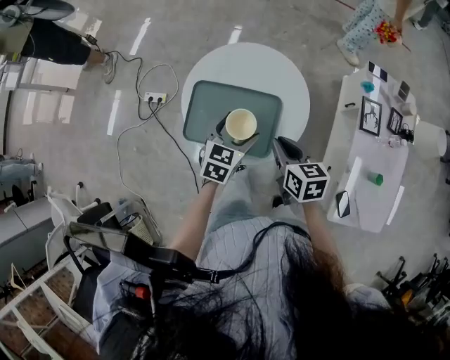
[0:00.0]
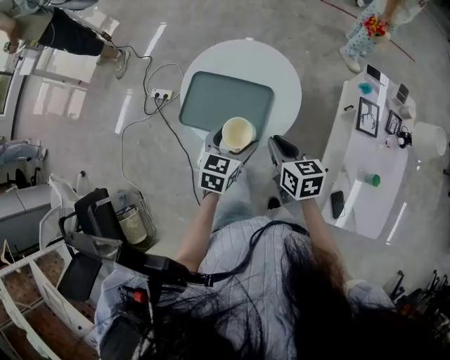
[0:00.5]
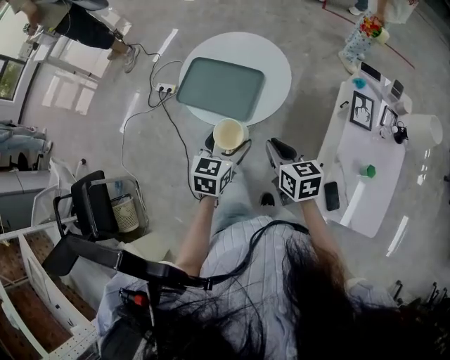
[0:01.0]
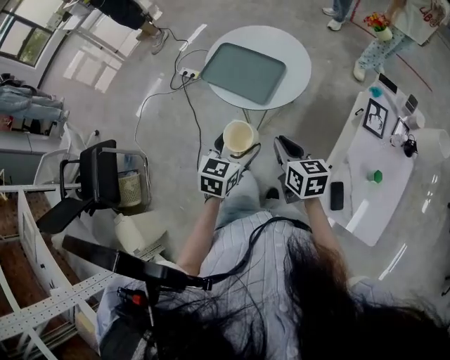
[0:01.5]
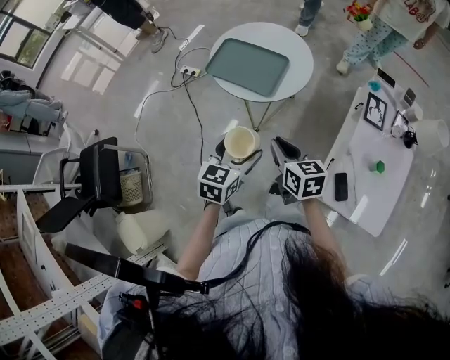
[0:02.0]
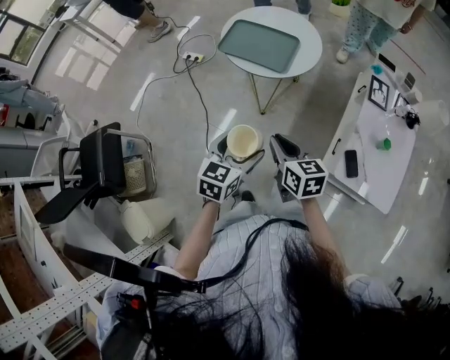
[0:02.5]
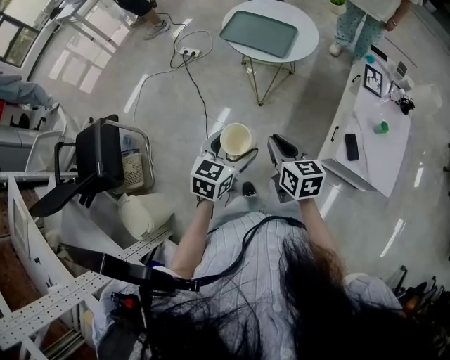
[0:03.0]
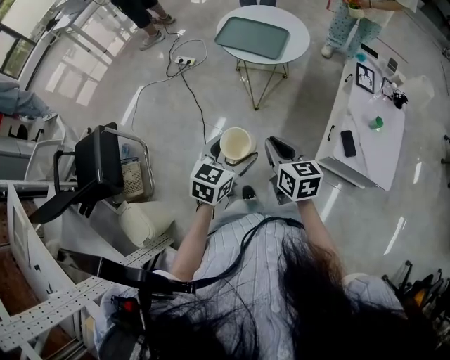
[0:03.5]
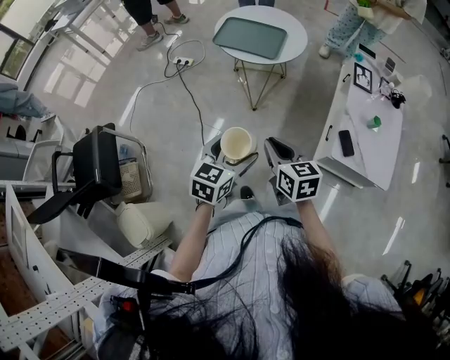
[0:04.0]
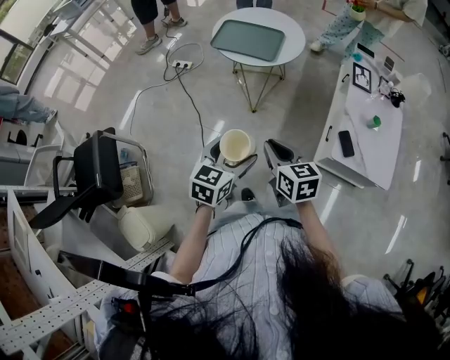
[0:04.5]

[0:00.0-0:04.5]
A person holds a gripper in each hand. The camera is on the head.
0:00.0 to 0:02.0: The two grippers go approximately 30 cm backward. The left gripper rotates approximately 20 degrees.
0:02.0 to 0:04.5: The left gripper travels backward by some 20 cm, while the right gripper travels backward and to the left by about 25 cm.

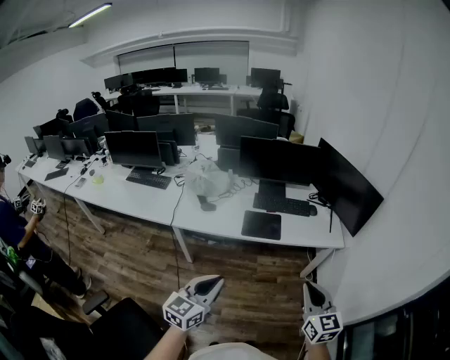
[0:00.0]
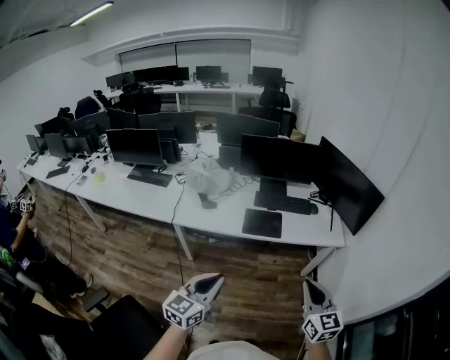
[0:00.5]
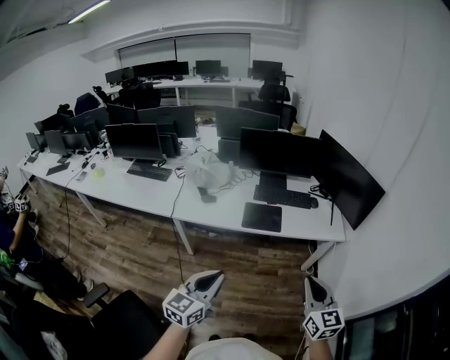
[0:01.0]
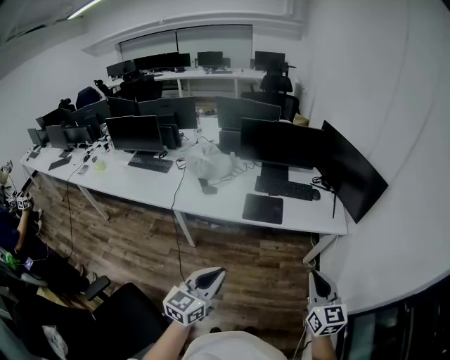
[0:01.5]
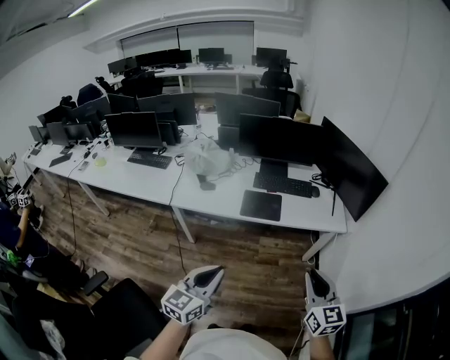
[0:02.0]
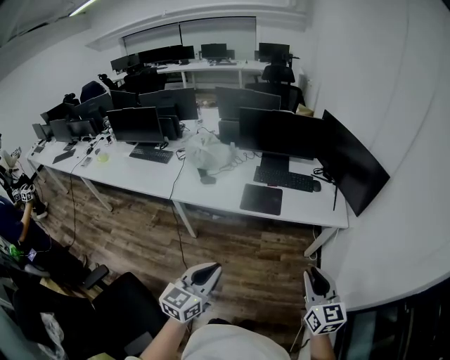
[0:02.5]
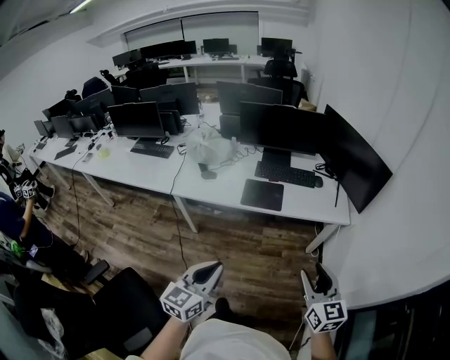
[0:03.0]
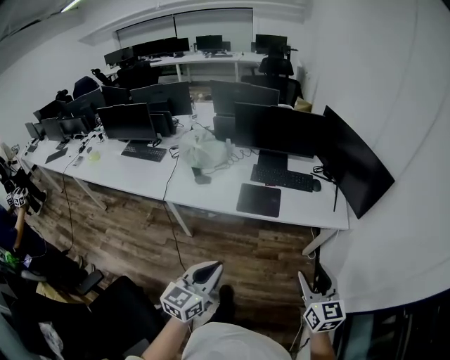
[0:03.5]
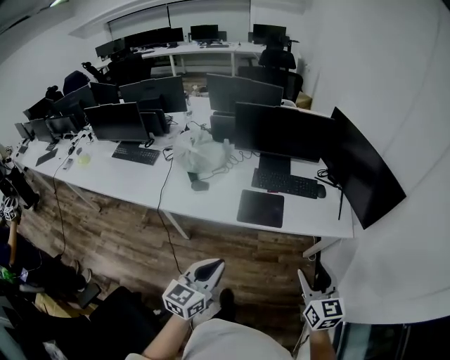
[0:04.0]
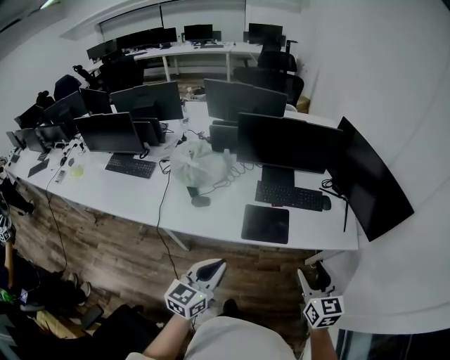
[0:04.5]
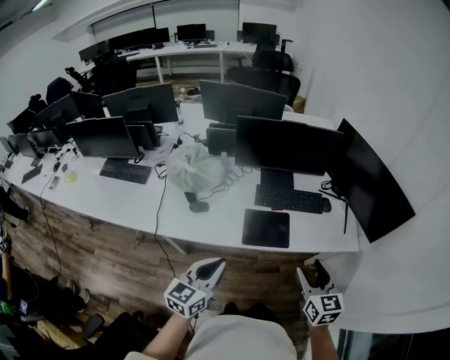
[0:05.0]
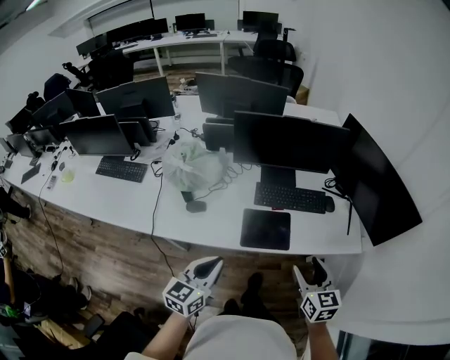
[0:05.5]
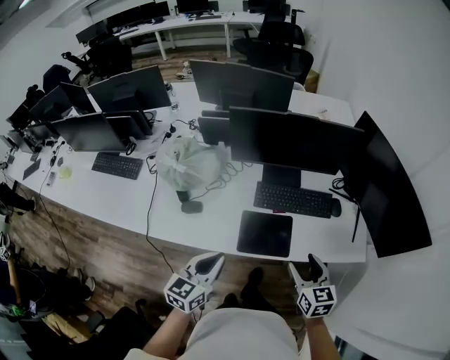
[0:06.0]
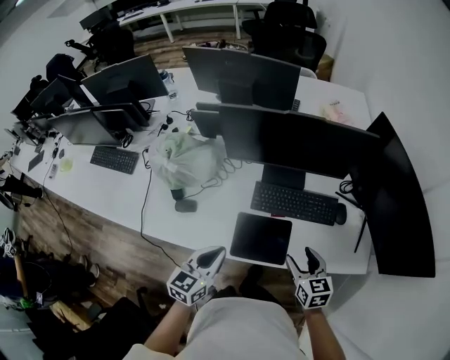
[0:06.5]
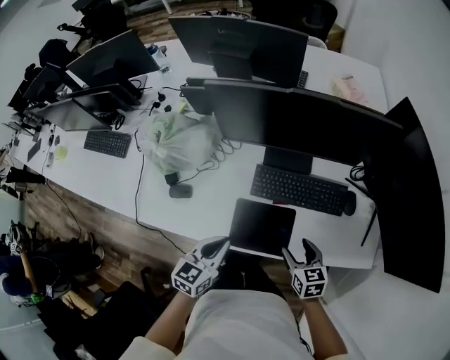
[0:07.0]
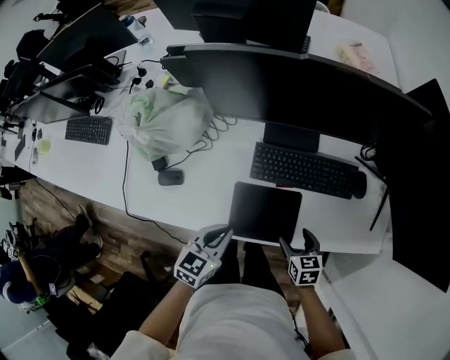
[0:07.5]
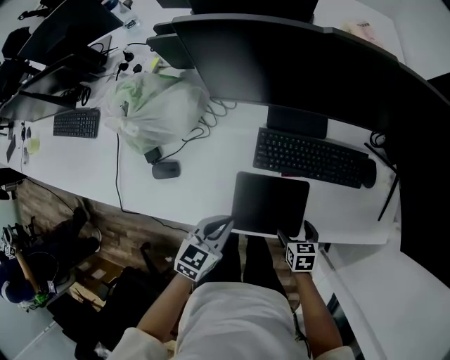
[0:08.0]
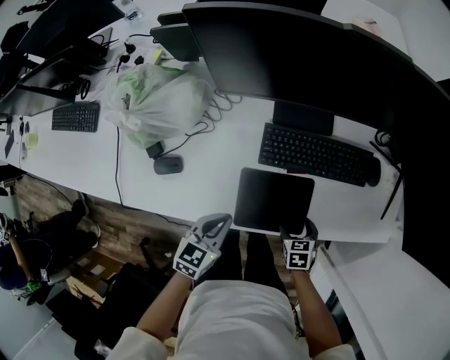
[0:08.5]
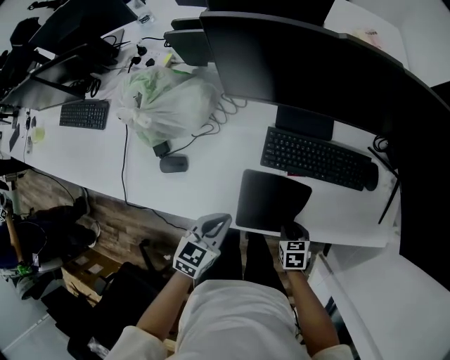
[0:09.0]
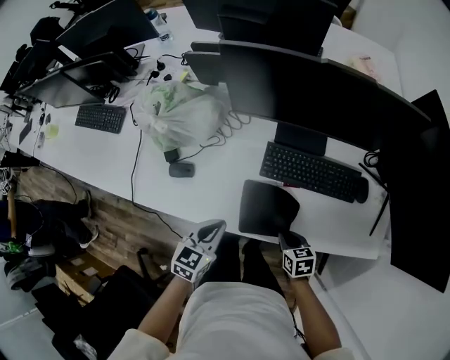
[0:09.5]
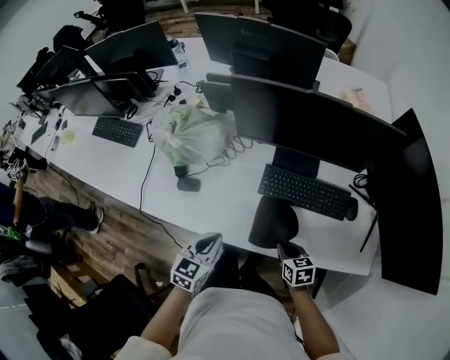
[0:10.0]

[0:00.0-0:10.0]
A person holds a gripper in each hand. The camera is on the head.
0:00.0 to 0:02.0: The left gripper changes place by some 5 cm. Meanwhile the right gripper travels to the right by approximately 5 cm.
0:02.0 to 0:04.0: The two grippers go approximately 15 cm forward. The right gripper opens its fingers.
0:04.0 to 0:06.0: The left gripper heads forward, covering approximately 25 cm, while the right gripper heads forward and downward, covering about 30 cm.
0:06.0 to 0:08.0: The right gripper goes some 35 cm downward, and angles its fingers downward, by about 30 degrees; the left gripper moves downward and forward, roughly 25 cm, and rotates roughly 20 degrees.
0:08.0 to 0:10.0: Both grippers move upward, roughly 10 cm. The right gripper closes up.

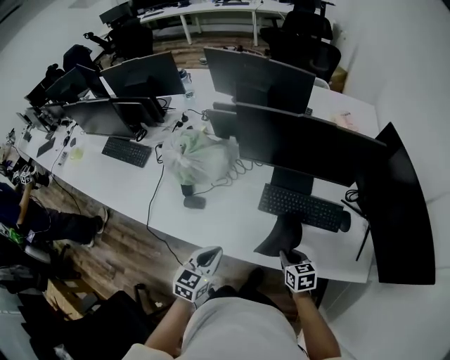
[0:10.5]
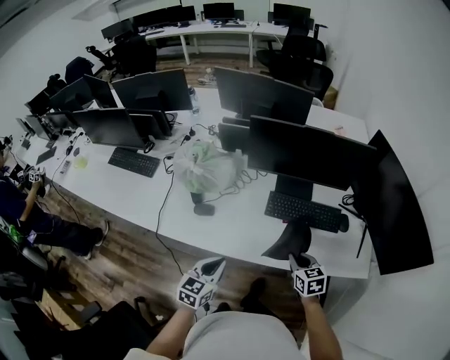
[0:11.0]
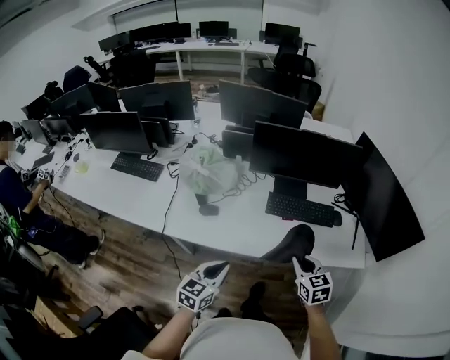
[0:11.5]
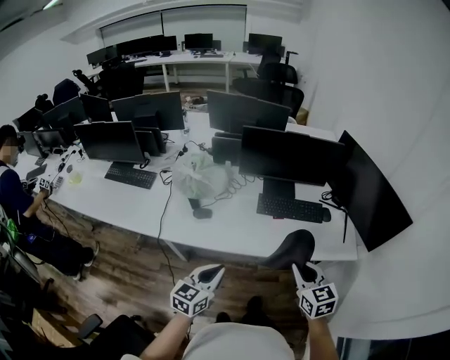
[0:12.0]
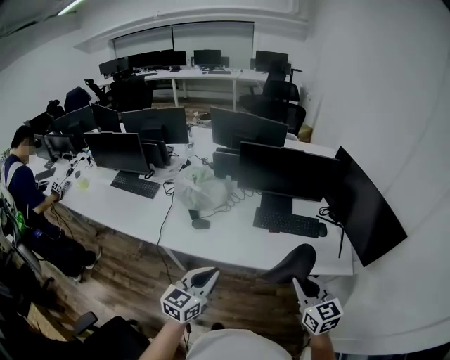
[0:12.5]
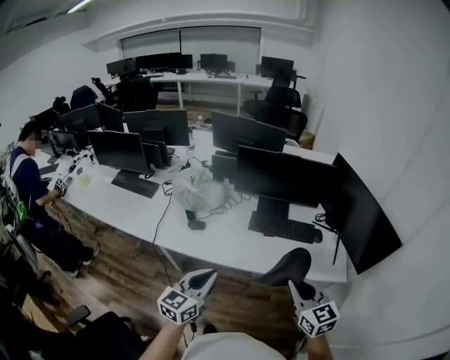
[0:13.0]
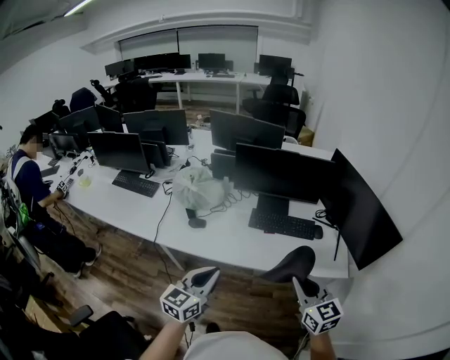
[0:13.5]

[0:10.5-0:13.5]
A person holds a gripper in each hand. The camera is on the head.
0:10.5 to 0:12.0: The left gripper goes some 20 cm backward and upward. The right gripper heads upward and backward, covering approximately 35 cm, and rotates approximately 30 degrees.
0:12.0 to 0:13.5: The right gripper shifts about 10 cm to the right and upward. The left gripper goes some 10 cm upward and to the right.

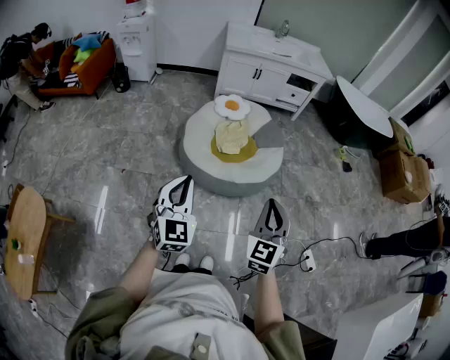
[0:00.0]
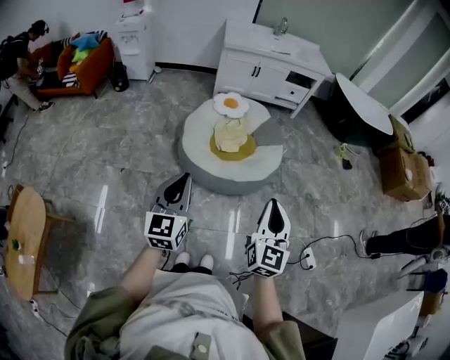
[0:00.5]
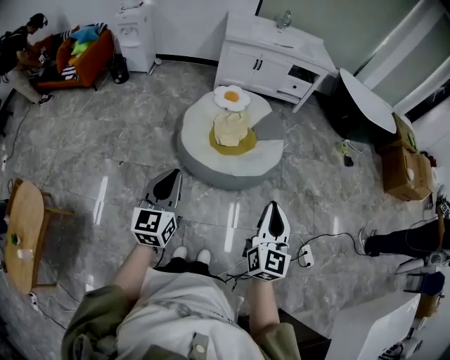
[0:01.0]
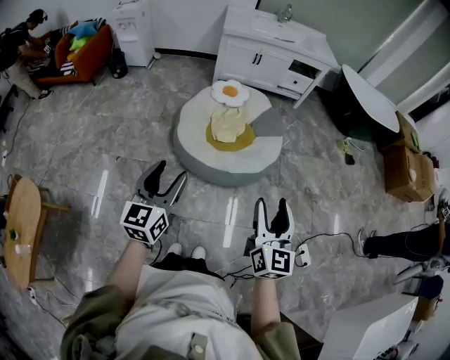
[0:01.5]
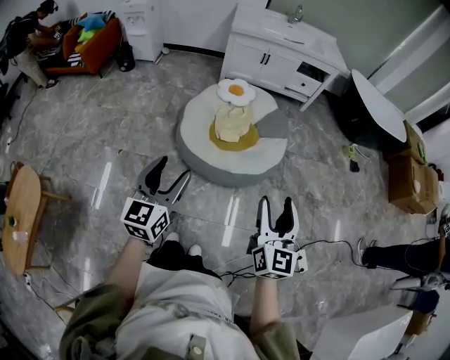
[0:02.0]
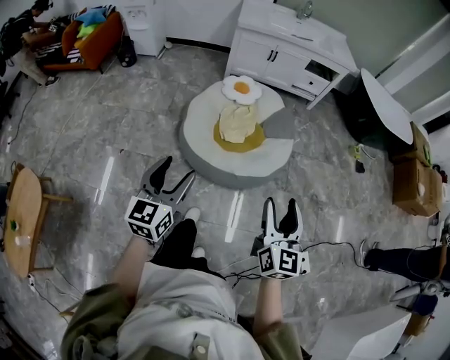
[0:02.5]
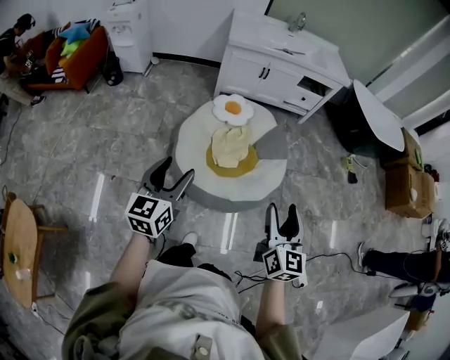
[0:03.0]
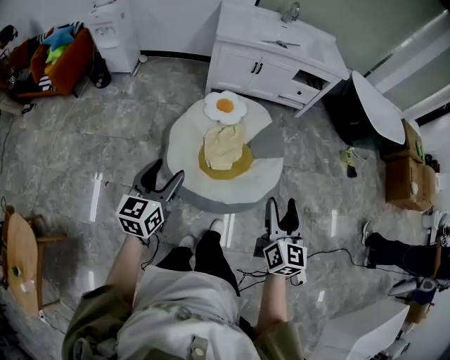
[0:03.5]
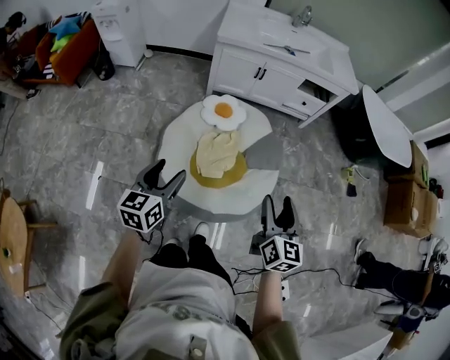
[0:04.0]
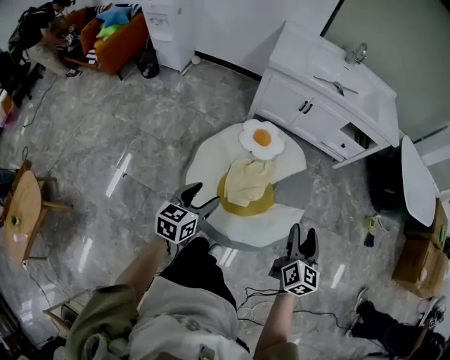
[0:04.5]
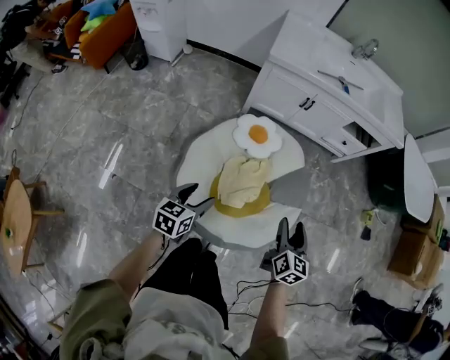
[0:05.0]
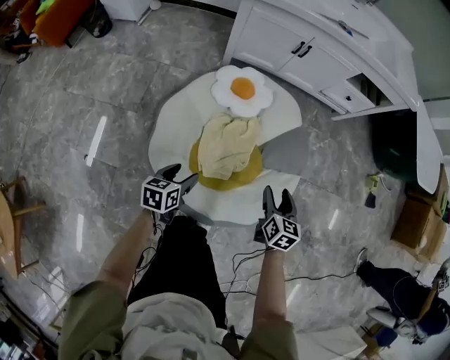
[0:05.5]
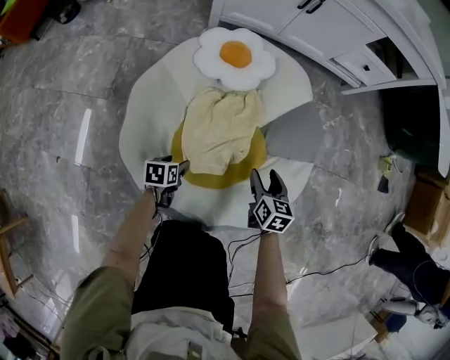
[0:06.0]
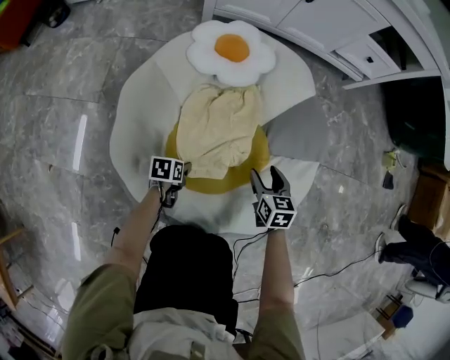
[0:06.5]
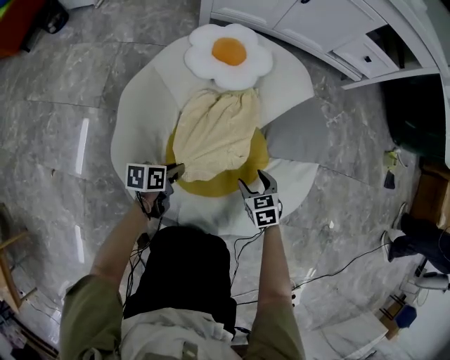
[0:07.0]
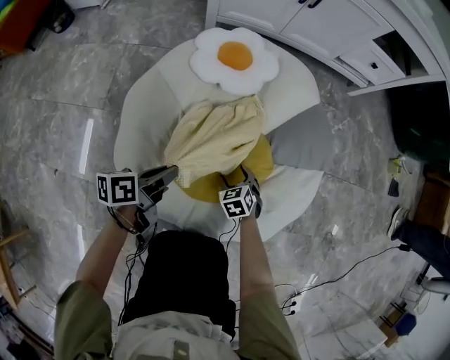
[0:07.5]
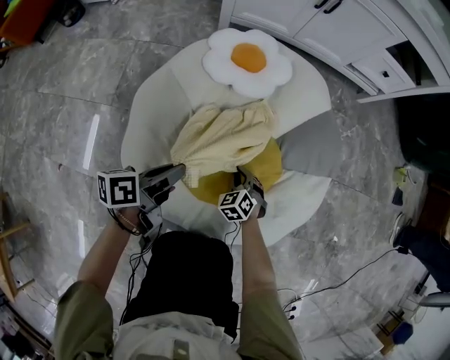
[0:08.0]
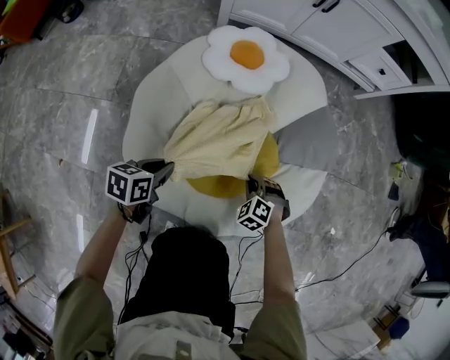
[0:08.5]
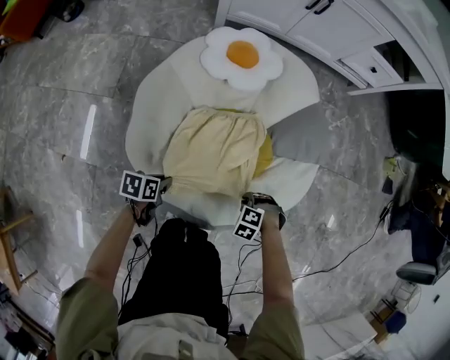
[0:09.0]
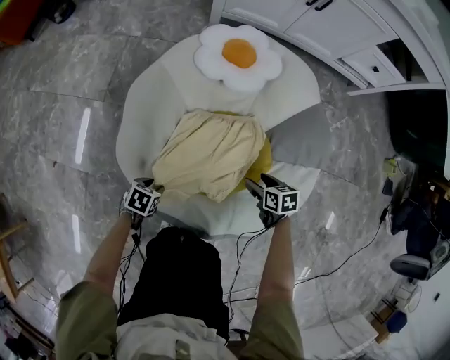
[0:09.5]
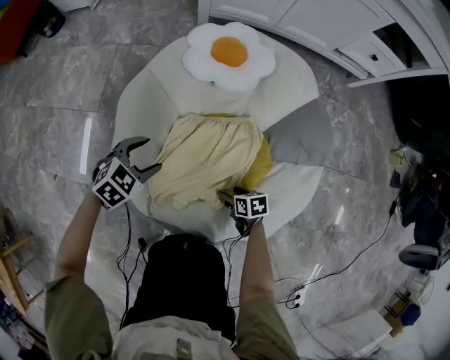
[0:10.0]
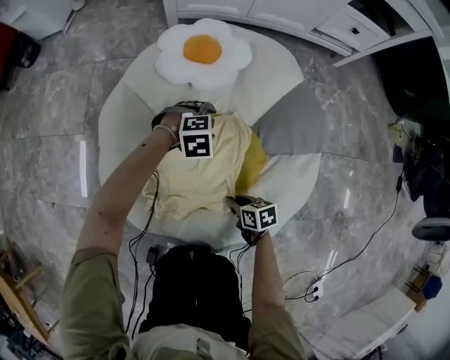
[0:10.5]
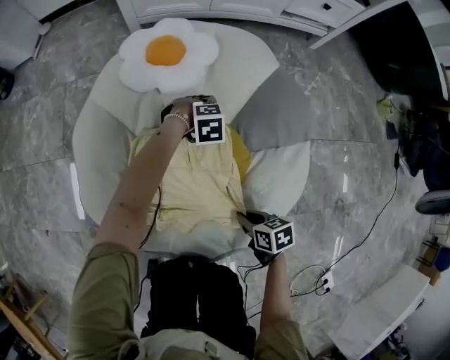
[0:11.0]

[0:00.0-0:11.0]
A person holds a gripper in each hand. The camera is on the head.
0:00.0 to 0:02.0: The left gripper moves about 5 cm, turns by some 30 degrees, and opens up; the right gripper shifts roughly 10 cm to the right, swivels about 30 degrees, and opens.
0:02.0 to 0:03.5: Both grippers move forward, some 30 cm.
0:03.5 to 0:05.5: Both grippers move downward and forward, roughly 50 cm. The left gripper rotates some 40 degrees; the right gripper swivels roughly 30 degrees.
0:05.5 to 0:07.5: The left gripper goes about 15 cm downward, changes its angle by approximately 30 degrees, and closes its fingers. Meanwhile the right gripper shifts about 40 cm downward, and changes its angle by approximately 40 degrees.
0:07.5 to 0:09.0: The right gripper changes place by some 15 cm, rotates around the line of its fingers by roughly 50 degrees, counterclockwise from behind, and closes up. Meanwhile the left gripper changes place by about 15 cm, and changes its angle by roughly 30 degrees.
0:09.0 to 0:11.0: The right gripper rolls clockwise, seen from behind, by roughly 80 degrees, and opens, then closes once more. Meanwhile the left gripper moves up and down over approximately 15 cm, changing direction 2 times, twists some 100 degrees clockwise, seen from behind, and opens its fingers.
